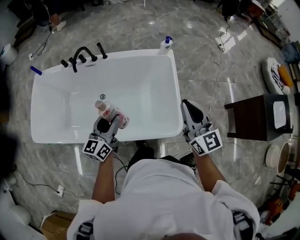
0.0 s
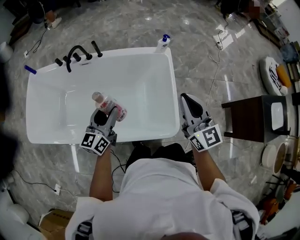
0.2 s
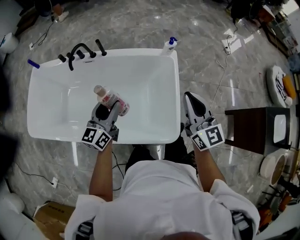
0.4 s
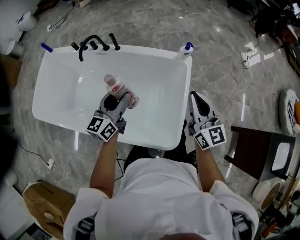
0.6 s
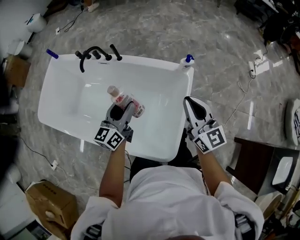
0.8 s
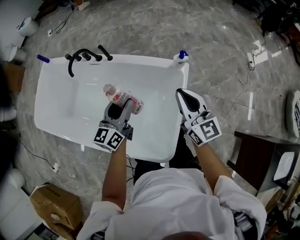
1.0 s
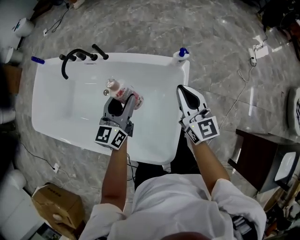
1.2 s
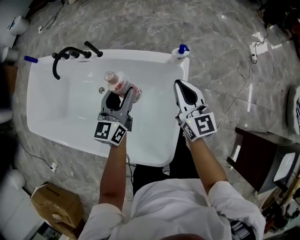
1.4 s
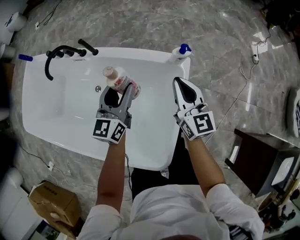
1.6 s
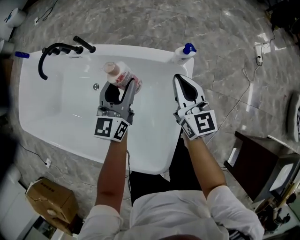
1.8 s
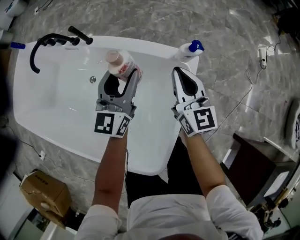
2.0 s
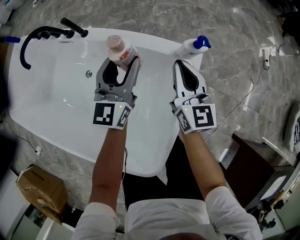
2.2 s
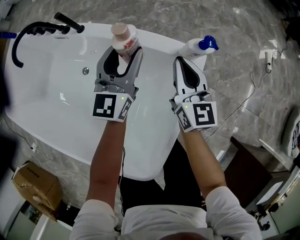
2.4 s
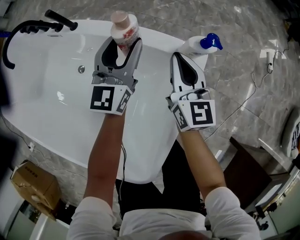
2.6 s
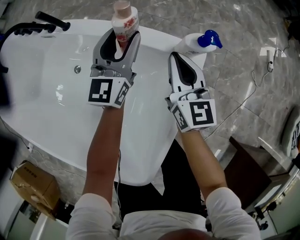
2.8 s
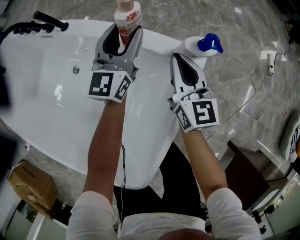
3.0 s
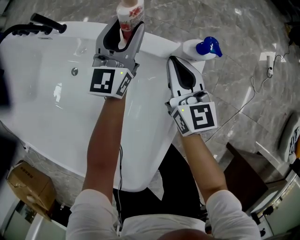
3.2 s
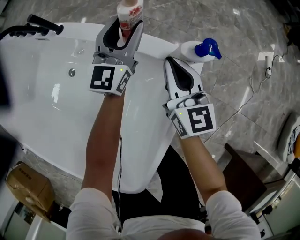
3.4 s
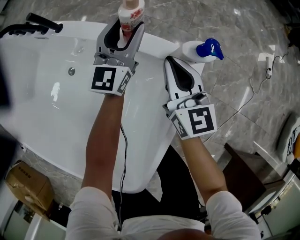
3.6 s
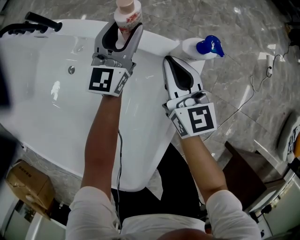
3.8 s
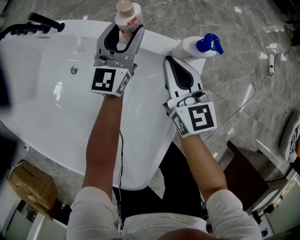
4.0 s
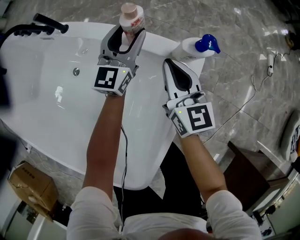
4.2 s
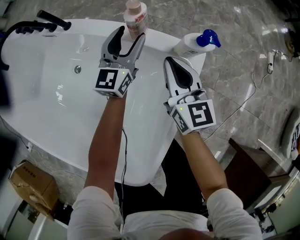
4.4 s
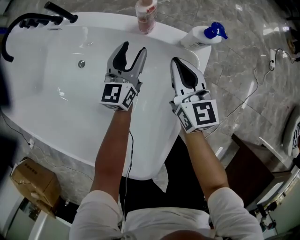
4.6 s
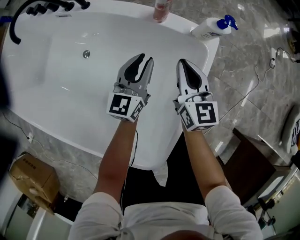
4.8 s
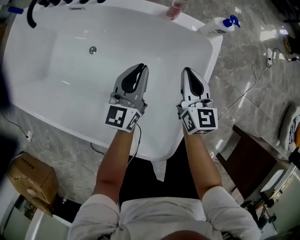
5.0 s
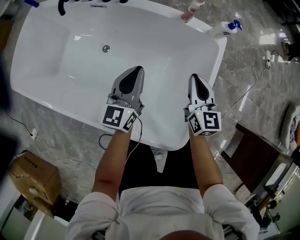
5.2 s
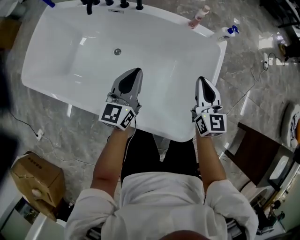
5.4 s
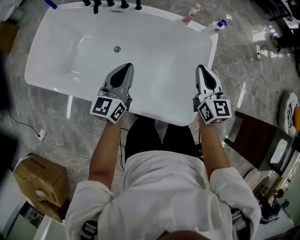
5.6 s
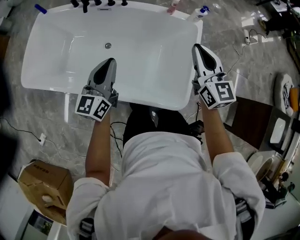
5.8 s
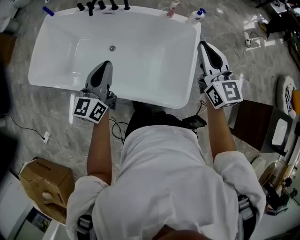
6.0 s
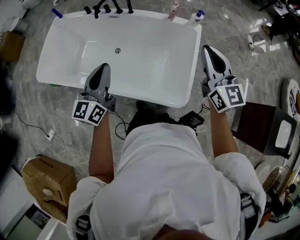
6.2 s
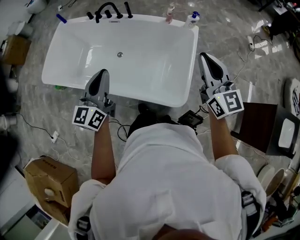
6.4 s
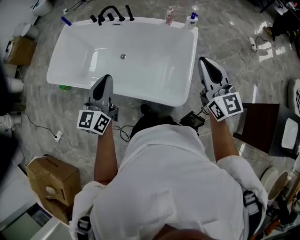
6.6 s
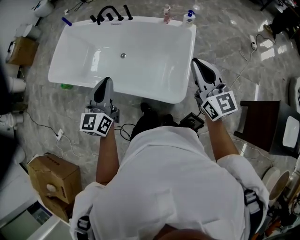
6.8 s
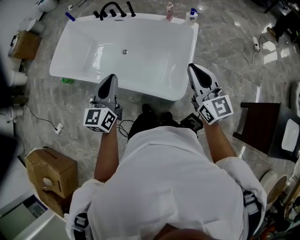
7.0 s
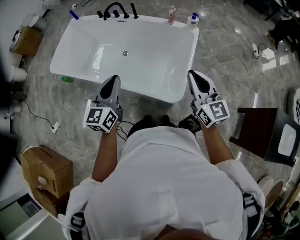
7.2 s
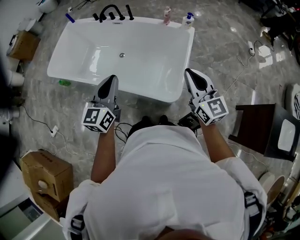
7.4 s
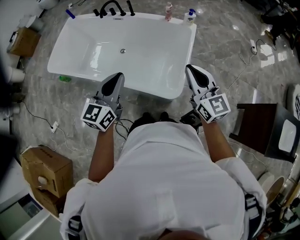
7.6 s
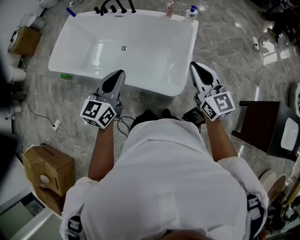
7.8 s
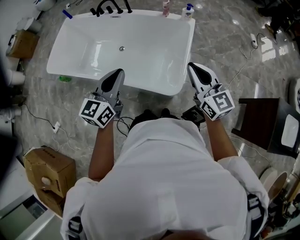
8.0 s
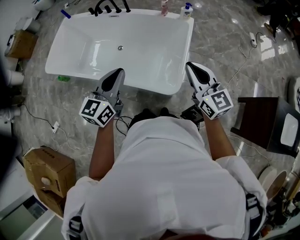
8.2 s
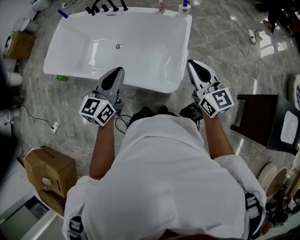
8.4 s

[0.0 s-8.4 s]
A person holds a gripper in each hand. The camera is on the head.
0.0 to 1.4 s: The right gripper travels forward and downward by approximately 40 cm. Meanwhile the left gripper shifts roughly 35 cm forward and to the right.
1.4 to 2.8 s: Both grippers move downward and forward, roughly 25 cm.
2.8 to 4.2 s: The left gripper shifts by some 5 cm.
4.2 to 5.6 s: The right gripper is displaced backward, upward and to the left by some 40 cm. Meanwhile the left gripper travels backward, to the left and upward by about 60 cm, and closes its fingers.
5.6 to 7.0 s: Both grippers travel together backward and upward, some 30 cm.
7.0 to 8.4 s: The left gripper heads to the right, covering about 5 cm.

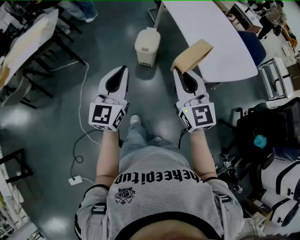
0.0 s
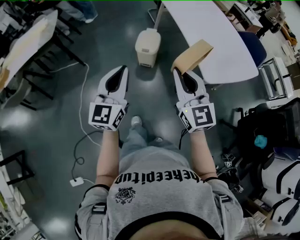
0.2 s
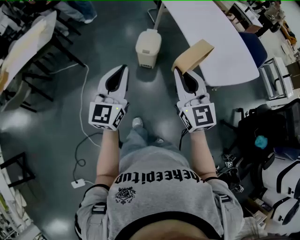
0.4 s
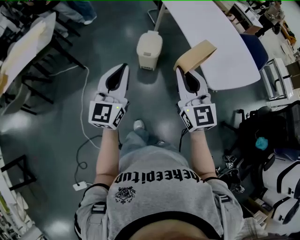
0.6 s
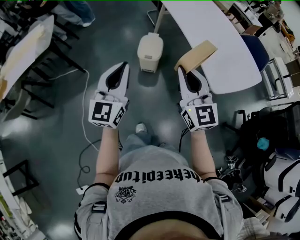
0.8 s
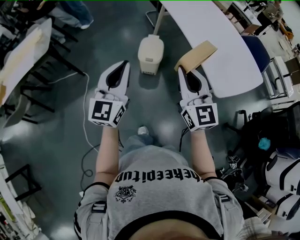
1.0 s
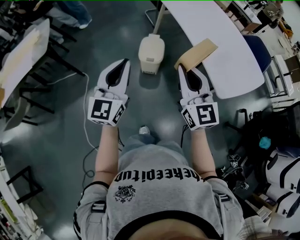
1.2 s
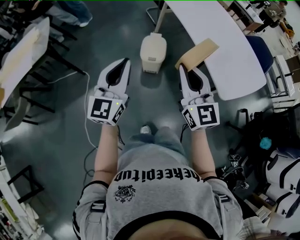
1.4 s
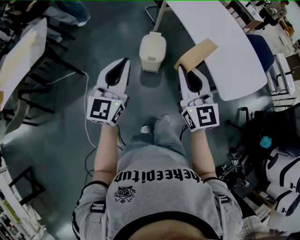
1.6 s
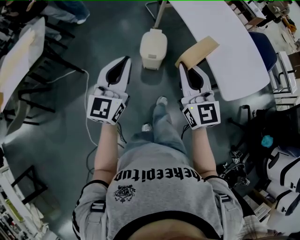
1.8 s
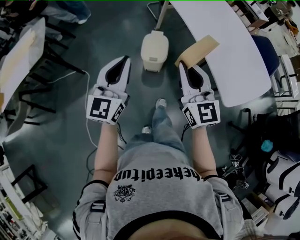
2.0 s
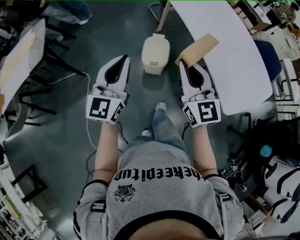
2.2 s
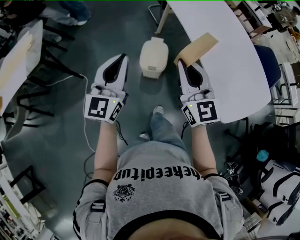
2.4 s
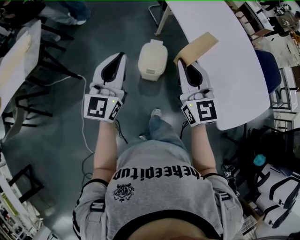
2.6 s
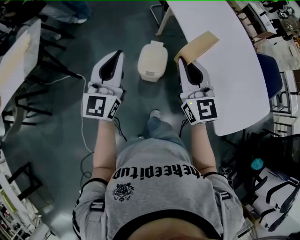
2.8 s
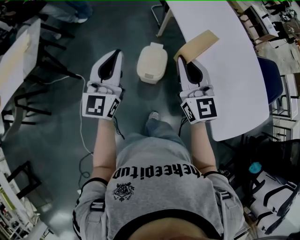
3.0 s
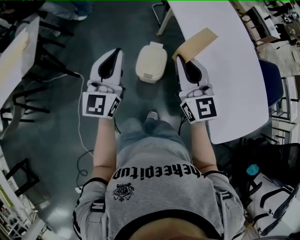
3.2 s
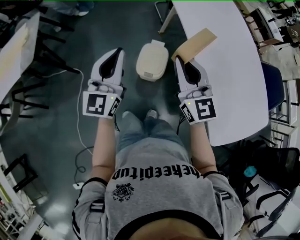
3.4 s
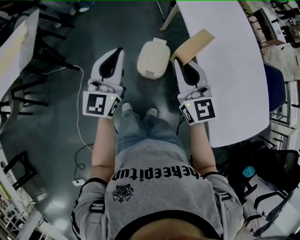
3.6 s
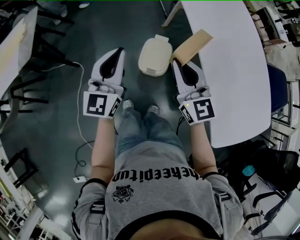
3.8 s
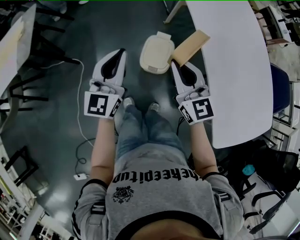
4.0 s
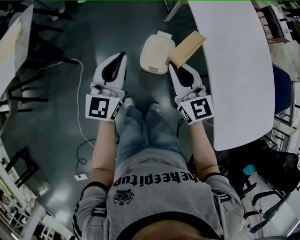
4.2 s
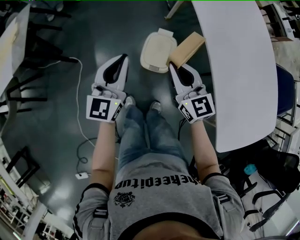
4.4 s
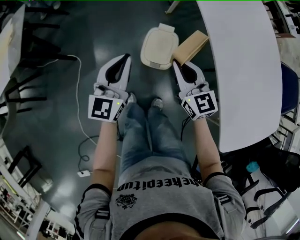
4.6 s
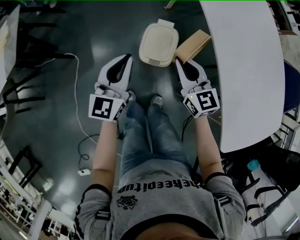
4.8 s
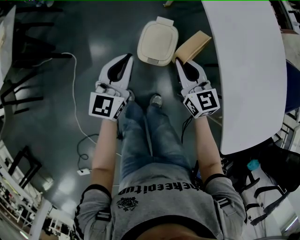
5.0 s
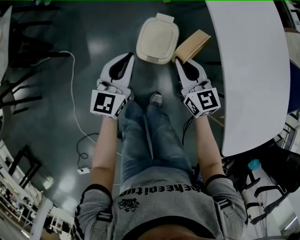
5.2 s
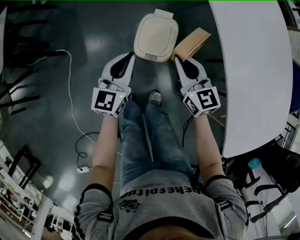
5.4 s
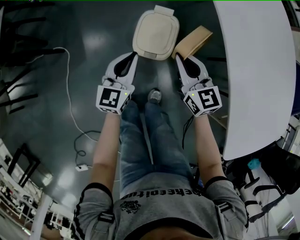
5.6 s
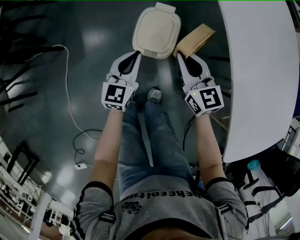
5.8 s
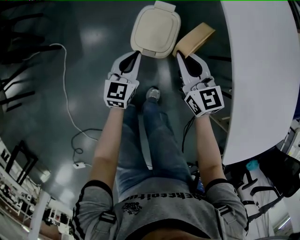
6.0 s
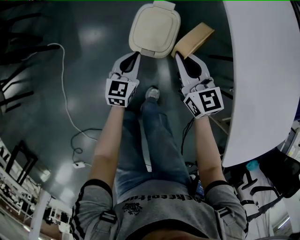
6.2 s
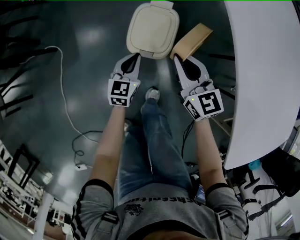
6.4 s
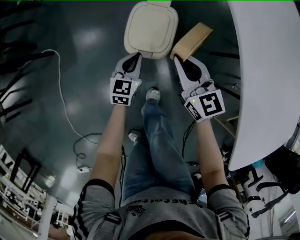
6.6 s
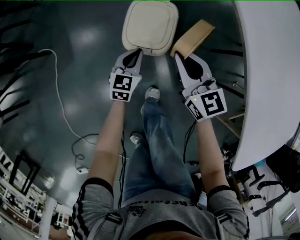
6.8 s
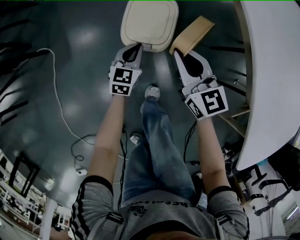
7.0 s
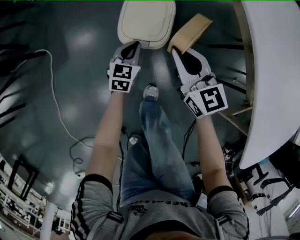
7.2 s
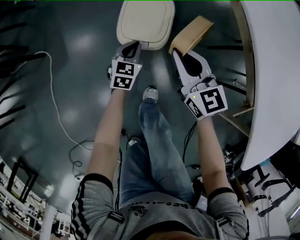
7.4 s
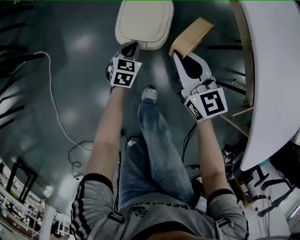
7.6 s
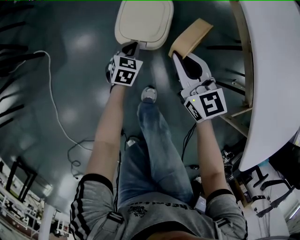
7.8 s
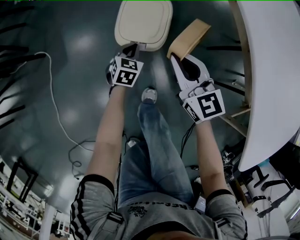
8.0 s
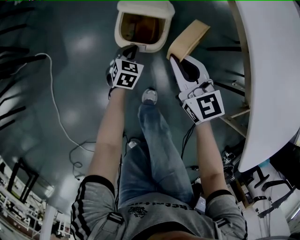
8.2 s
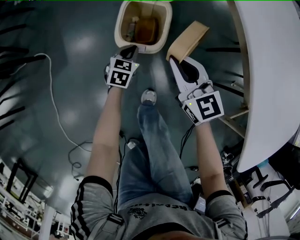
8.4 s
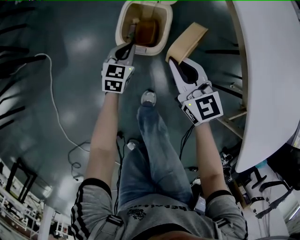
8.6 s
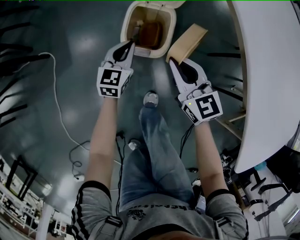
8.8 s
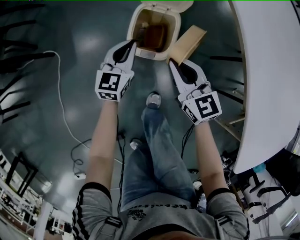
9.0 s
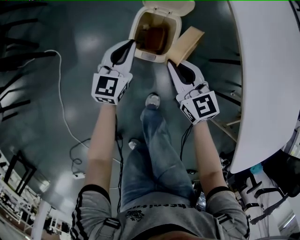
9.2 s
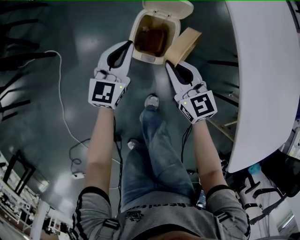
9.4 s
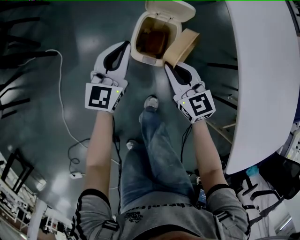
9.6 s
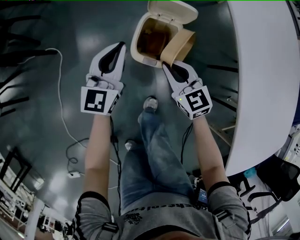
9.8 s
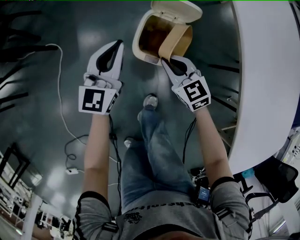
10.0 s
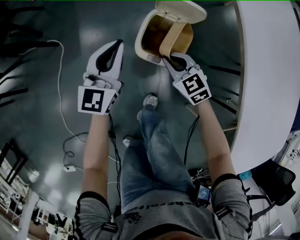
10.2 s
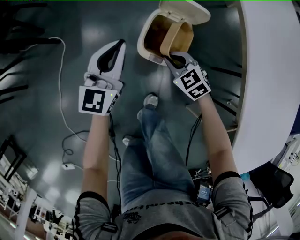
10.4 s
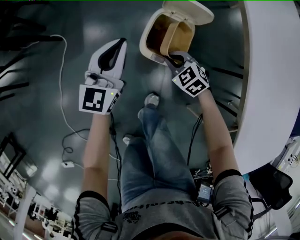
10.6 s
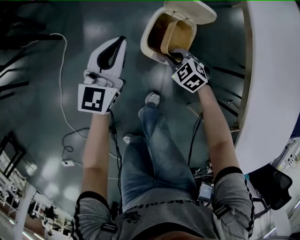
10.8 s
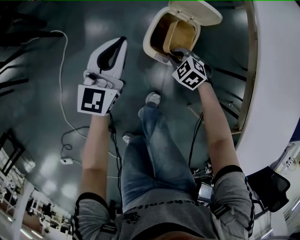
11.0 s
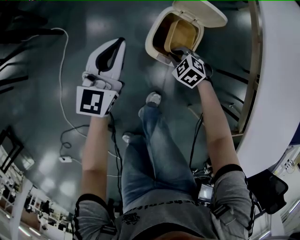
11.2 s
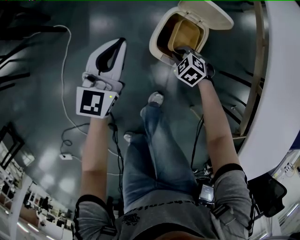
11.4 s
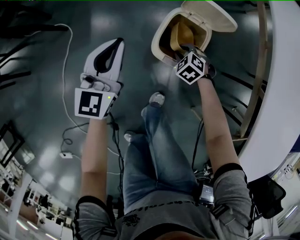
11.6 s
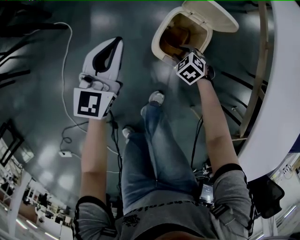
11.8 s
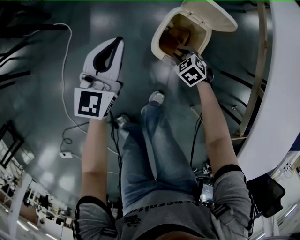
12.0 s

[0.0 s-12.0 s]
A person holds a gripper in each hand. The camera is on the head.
0.0 to 1.6 s: The grippers both shift forward and to the left by about 20 cm.
1.6 to 3.0 s: The two grippers go approximately 25 cm forward.
3.0 to 4.4 s: Both grippers travel together downward and forward, some 15 cm.
4.4 to 6.0 s: The left gripper heads downward, covering roughly 30 cm, and swivels roughly 20 degrees. The right gripper travels downward by roughly 20 cm.
6.0 to 7.6 s: The right gripper heads downward, covering approximately 10 cm. Meanwhile the left gripper moves downward, about 20 cm.
7.6 to 9.0 s: The left gripper travels upward by roughly 15 cm, and turns by roughly 20 degrees.
9.0 to 10.4 s: The left gripper travels upward and to the left by some 15 cm. Meanwhile the right gripper is displaced downward by about 10 cm, and changes its angle by some 40 degrees.
10.4 to 12.0 s: The left gripper moves roughly 5 cm. The right gripper heads downward, covering approximately 10 cm, and rotates roughly 20 degrees.

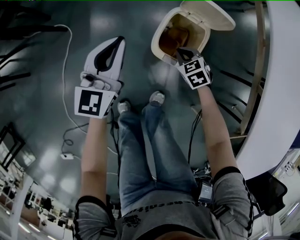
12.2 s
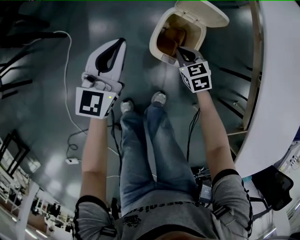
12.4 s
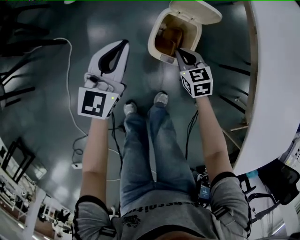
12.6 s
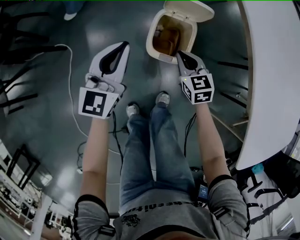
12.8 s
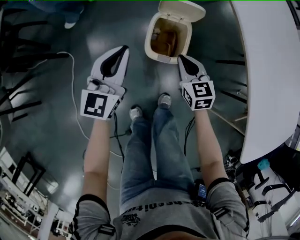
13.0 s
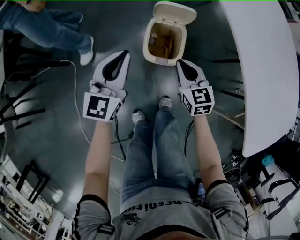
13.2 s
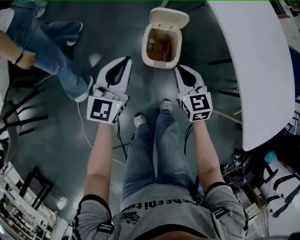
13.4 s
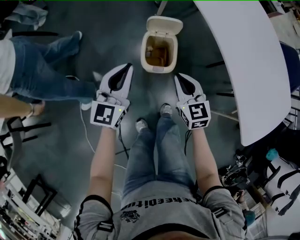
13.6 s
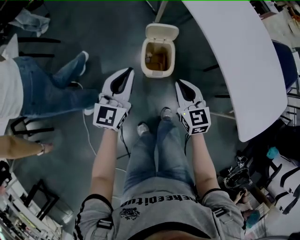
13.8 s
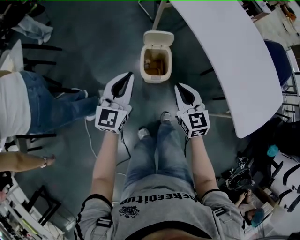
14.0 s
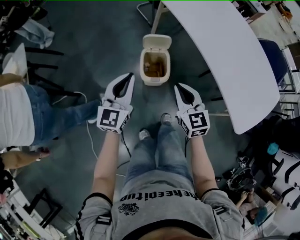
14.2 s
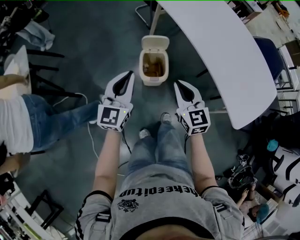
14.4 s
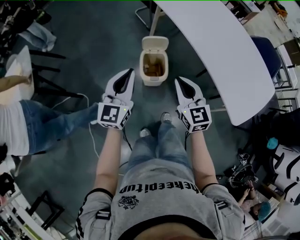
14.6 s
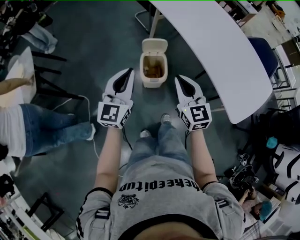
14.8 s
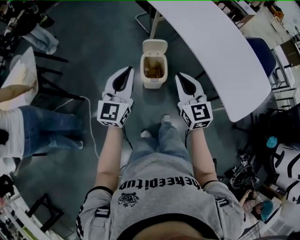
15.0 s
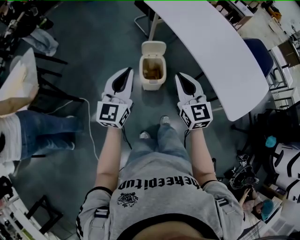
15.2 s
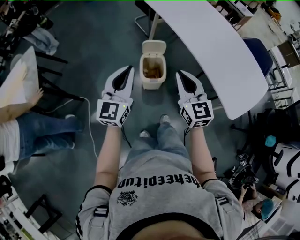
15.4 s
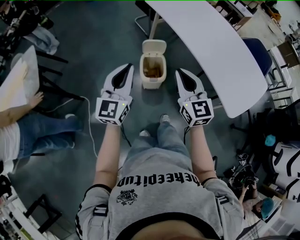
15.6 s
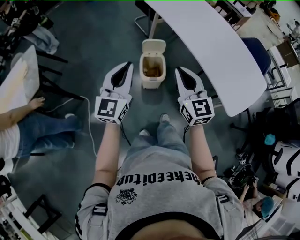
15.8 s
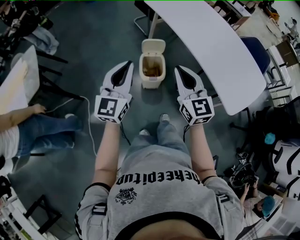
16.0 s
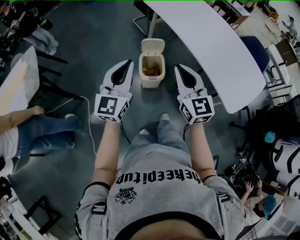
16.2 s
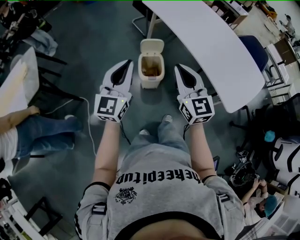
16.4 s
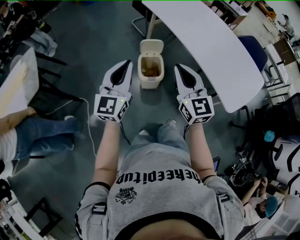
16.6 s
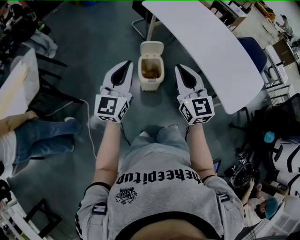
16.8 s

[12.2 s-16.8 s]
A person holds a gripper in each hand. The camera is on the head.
12.2 to 13.8 s: The left gripper is displaced upward by some 15 cm, and rotates approximately 20 degrees; the right gripper heads upward, covering some 30 cm, and points its fingers approximately 40 degrees further upward.
13.8 to 15.2 s: Both grippers travel together upward and backward, approximately 20 cm.
15.2 to 16.8 s: The right gripper heads upward, covering about 5 cm.
